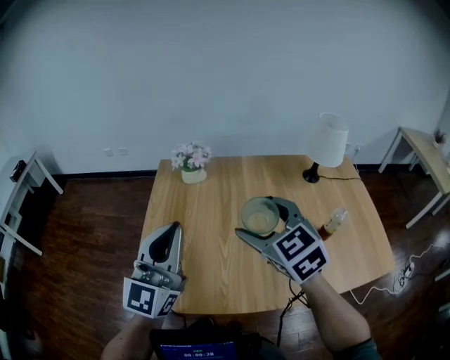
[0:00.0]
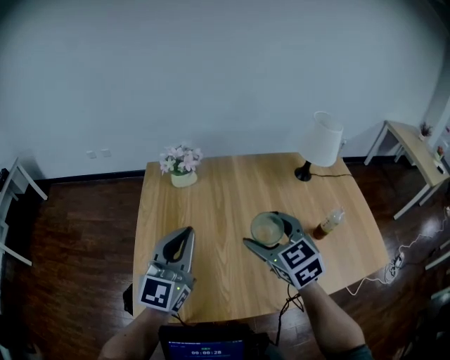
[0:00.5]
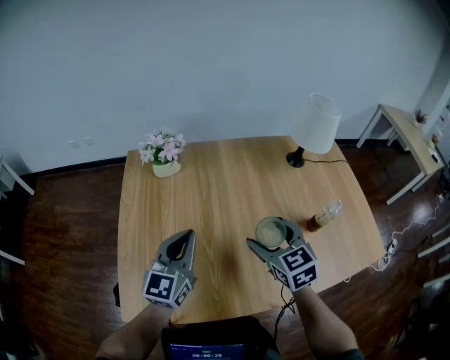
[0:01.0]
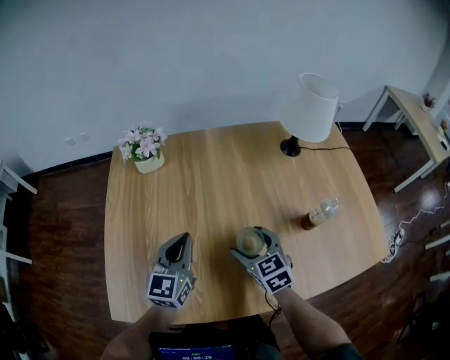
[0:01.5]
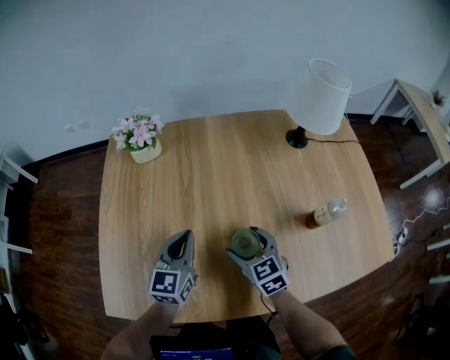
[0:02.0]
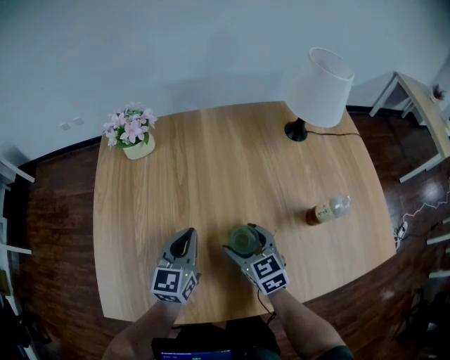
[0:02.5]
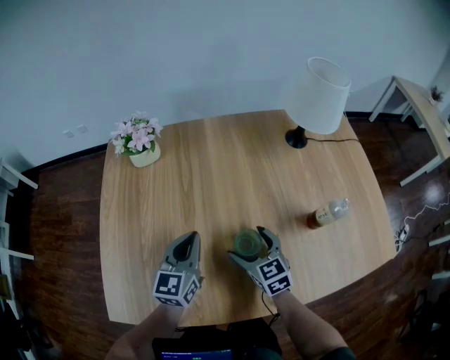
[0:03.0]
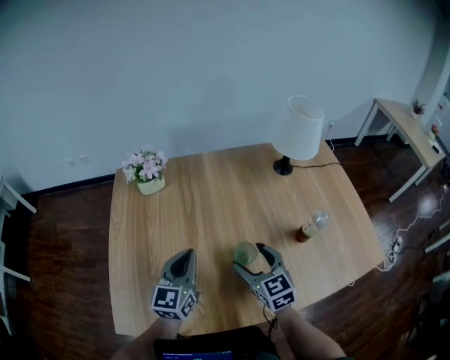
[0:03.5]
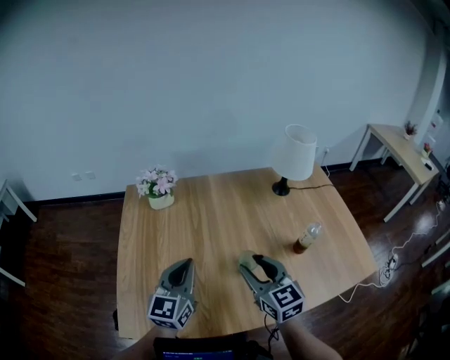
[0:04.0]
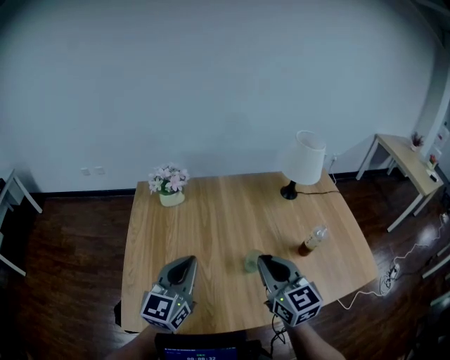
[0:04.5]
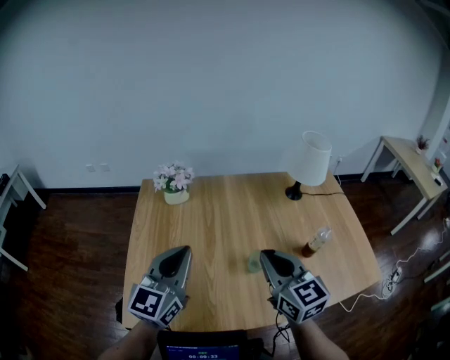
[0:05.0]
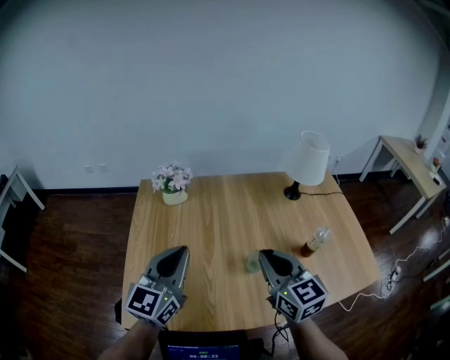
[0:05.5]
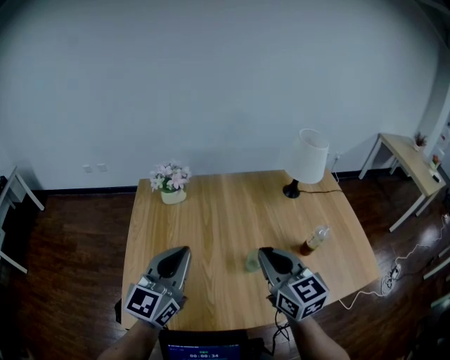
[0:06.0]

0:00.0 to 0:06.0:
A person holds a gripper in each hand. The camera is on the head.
0:00.0 to 0:02.0: The left gripper travels downward, forward and to the right by about 30 cm, and angles its fingers downward, by approximately 30 degrees, while the right gripper is displaced downward by about 30 cm, and rotates about 20 degrees.
0:02.0 to 0:04.0: The left gripper travels upward and backward by some 15 cm. Meanwhile the right gripper travels upward by approximately 20 cm, turns by roughly 20 degrees, and closes its fingers.
0:04.0 to 0:06.0: The two grippers go roughly 10 cm upward. The right gripper closes.

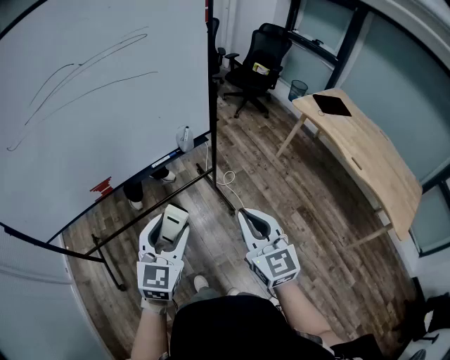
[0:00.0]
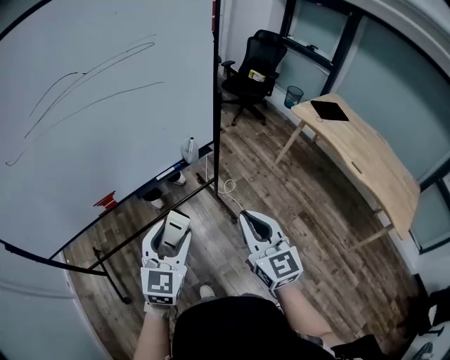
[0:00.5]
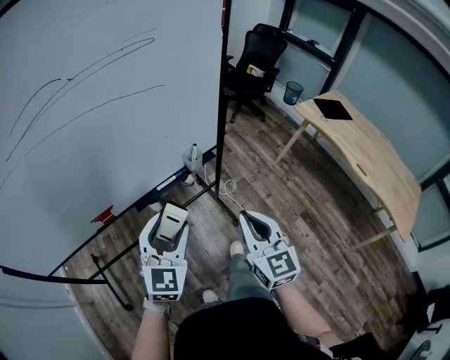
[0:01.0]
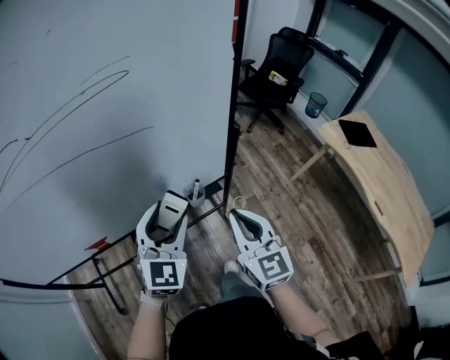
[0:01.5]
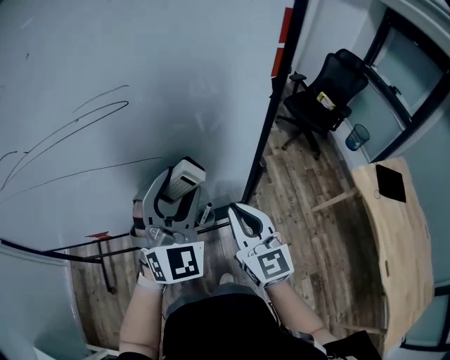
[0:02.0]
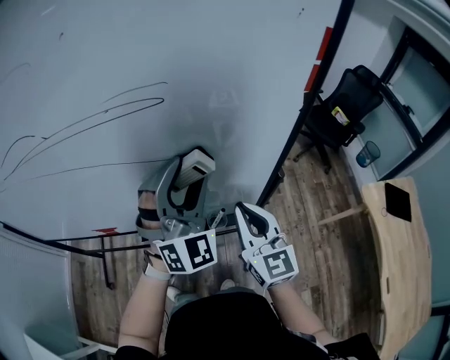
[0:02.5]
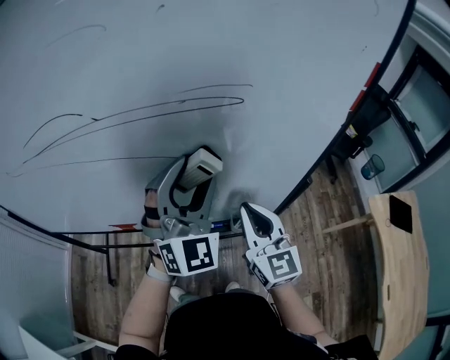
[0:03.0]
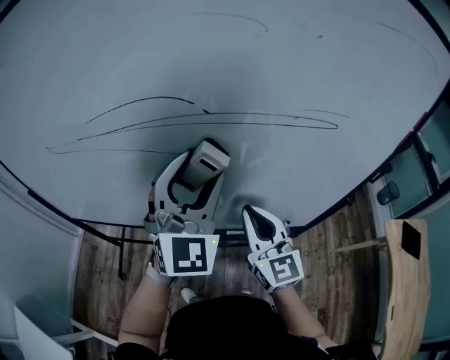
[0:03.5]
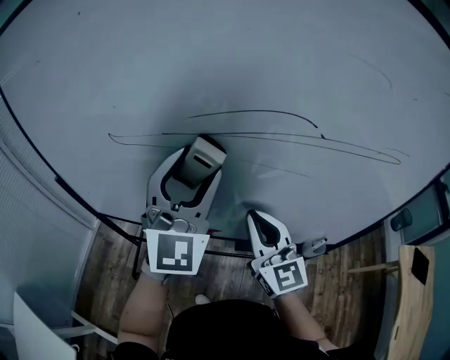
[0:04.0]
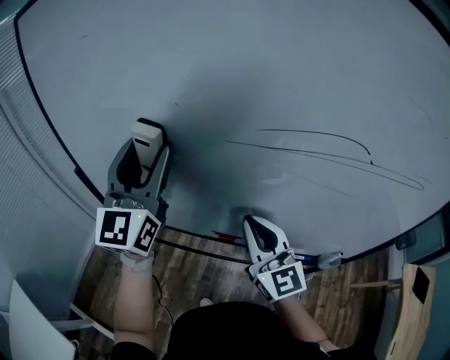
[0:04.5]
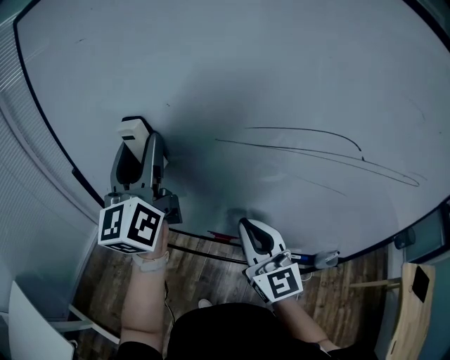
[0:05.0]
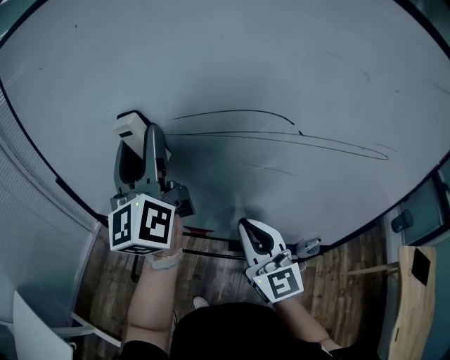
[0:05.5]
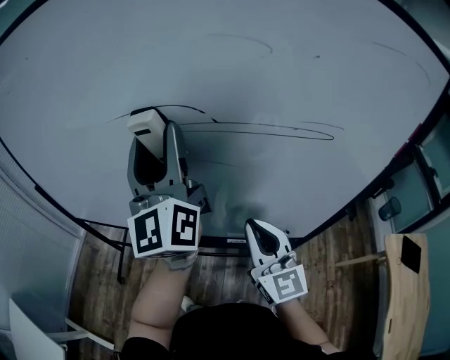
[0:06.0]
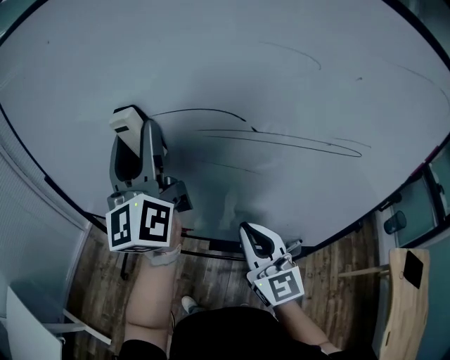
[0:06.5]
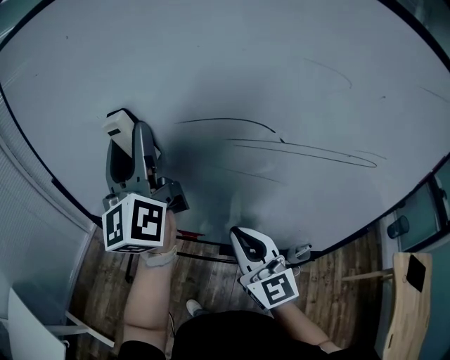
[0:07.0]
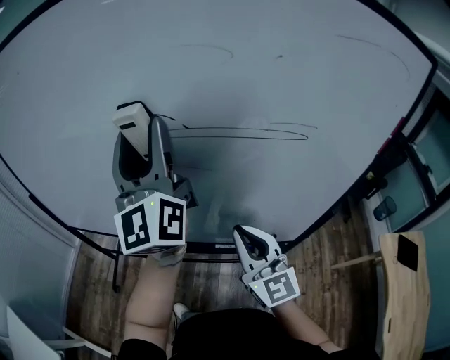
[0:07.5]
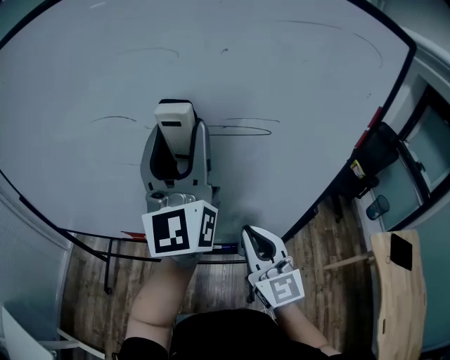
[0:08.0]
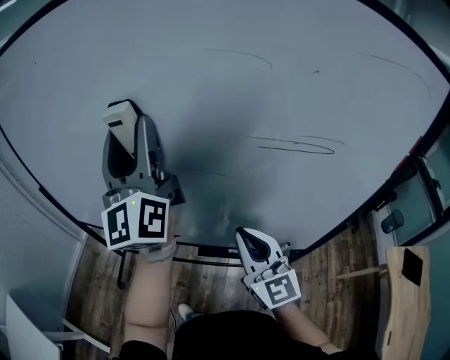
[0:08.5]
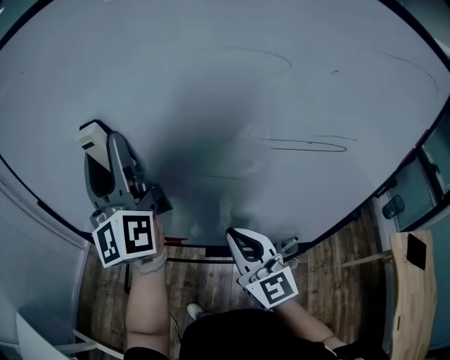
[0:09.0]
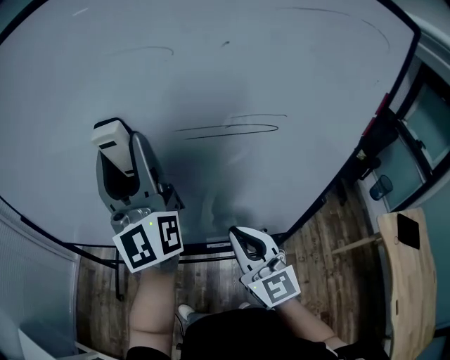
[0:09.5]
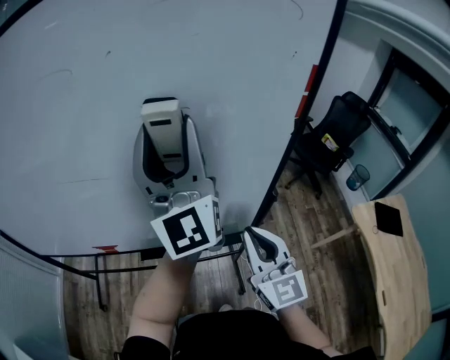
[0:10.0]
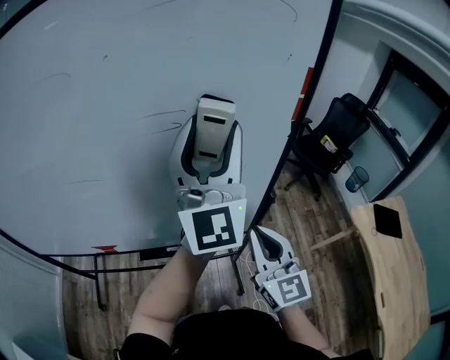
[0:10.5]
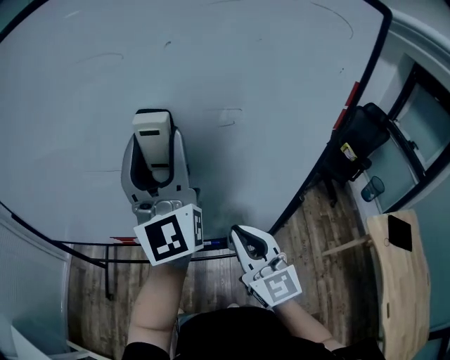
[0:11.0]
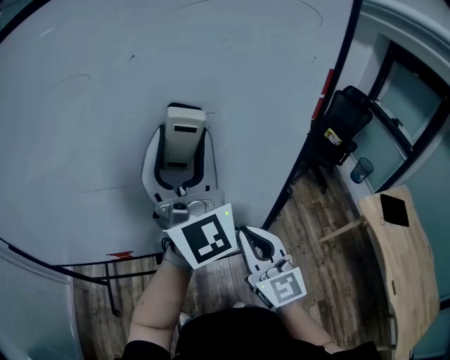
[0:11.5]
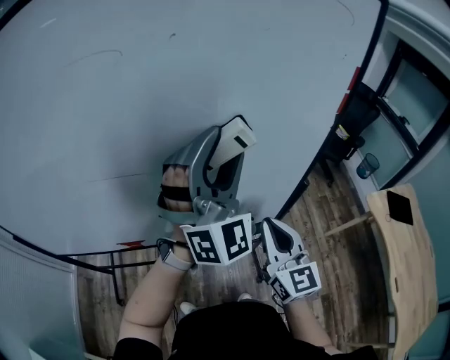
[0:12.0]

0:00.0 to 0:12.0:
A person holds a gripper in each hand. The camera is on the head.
0:00.0 to 0:02.0: The pair of grippers is taken approximately 40 cm. The left gripper changes its angle by some 40 degrees. The right gripper rotates roughly 20 degrees.
0:02.0 to 0:04.0: The two grippers travel together, to the left, roughly 40 cm. The left gripper changes its angle by roughly 20 degrees. Meanwhile the right gripper rotates some 20 degrees.
0:04.0 to 0:06.0: The right gripper heads to the right and backward, covering roughly 15 cm. The left gripper goes some 5 cm upward, goes to the left and returns, roughly 20 cm each way, and swivels roughly 60 degrees.
0:06.0 to 0:08.0: Both grippers travel together to the right and backward, some 15 cm.
0:08.0 to 0:10.0: The left gripper travels to the left and back again, approximately 25 cm each way, while the right gripper moves to the right and backward, approximately 10 cm.
0:10.0 to 0:12.0: The left gripper swings left and right, approximately 20 cm each way, with 2 reversals, and changes its angle by approximately 60 degrees.

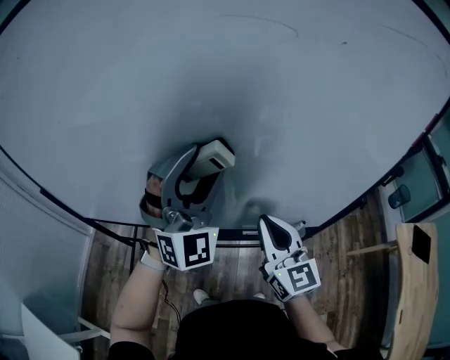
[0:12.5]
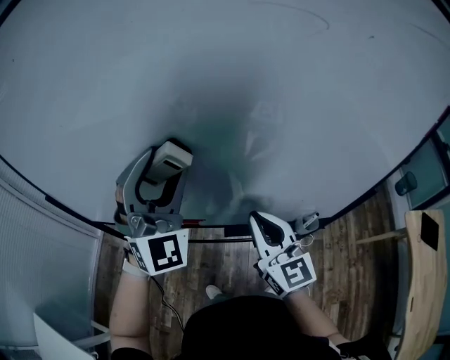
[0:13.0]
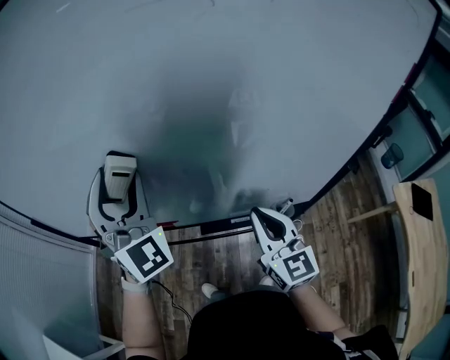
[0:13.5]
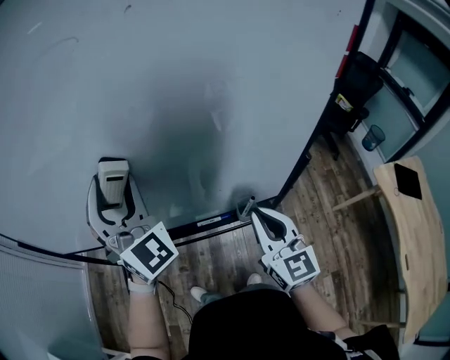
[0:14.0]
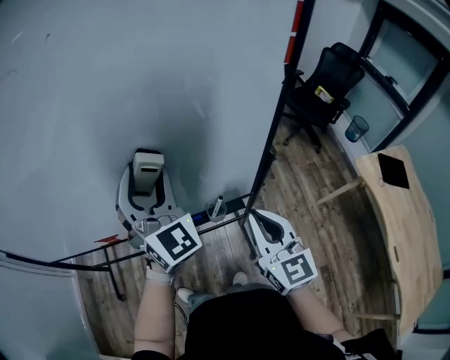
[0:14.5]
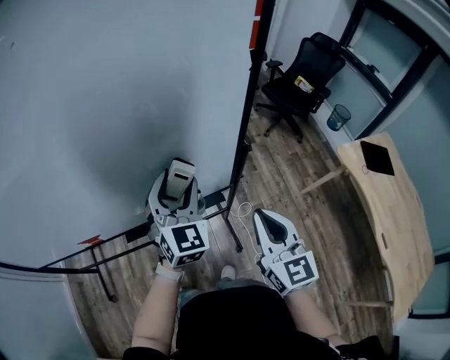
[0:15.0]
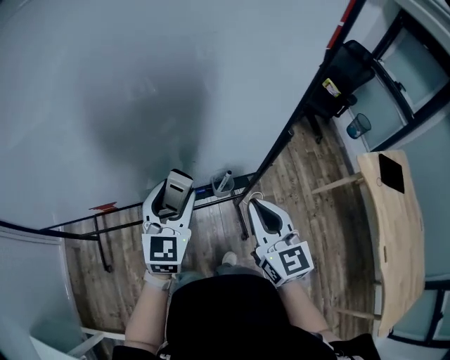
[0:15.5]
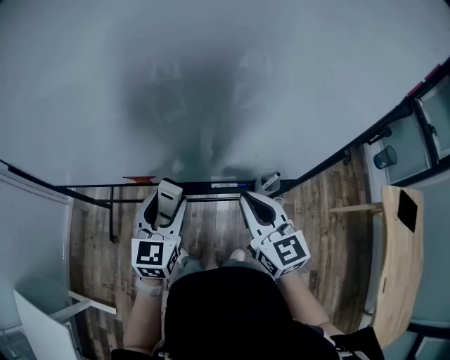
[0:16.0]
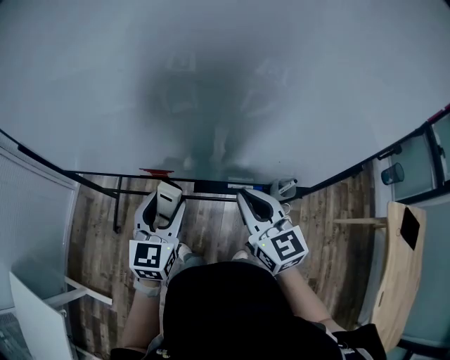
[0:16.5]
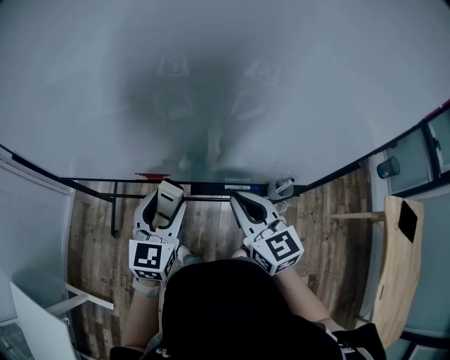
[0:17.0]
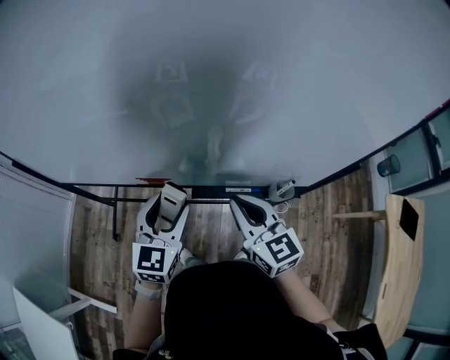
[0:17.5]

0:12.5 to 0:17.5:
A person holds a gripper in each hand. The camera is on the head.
0:12.5 to 0:15.0: The right gripper goes some 35 cm to the right and backward, and changes its angle by about 30 degrees. Meanwhile the left gripper heads to the right and downward, covering some 35 cm, and rotates roughly 40 degrees.
0:15.0 to 0:17.5: The grippers both shift to the left by some 35 cm. The left gripper rotates roughly 30 degrees. Meanwhile the right gripper rotates some 40 degrees.

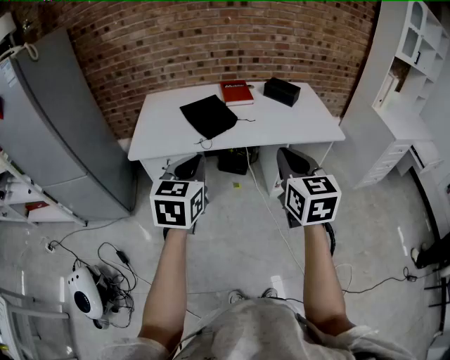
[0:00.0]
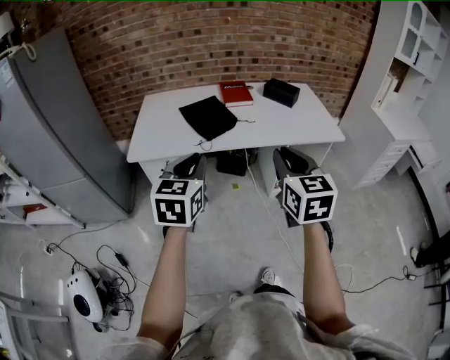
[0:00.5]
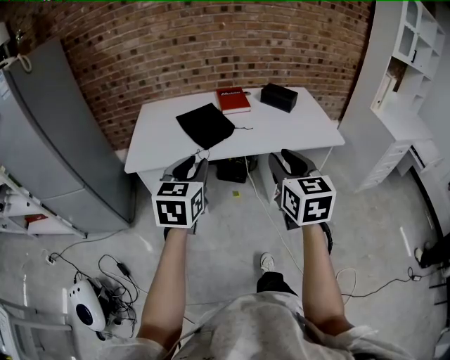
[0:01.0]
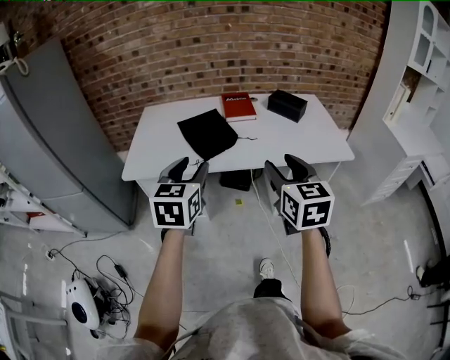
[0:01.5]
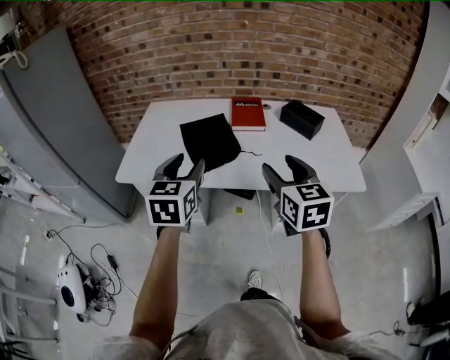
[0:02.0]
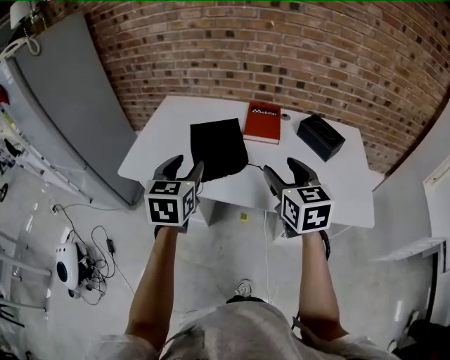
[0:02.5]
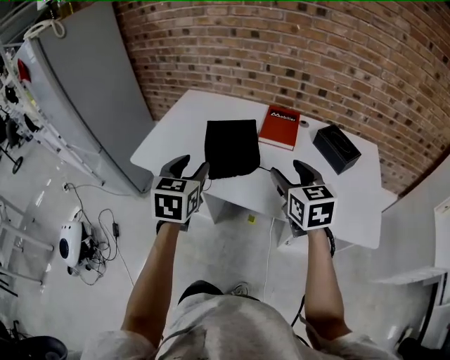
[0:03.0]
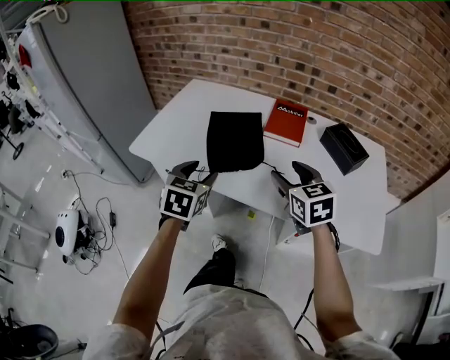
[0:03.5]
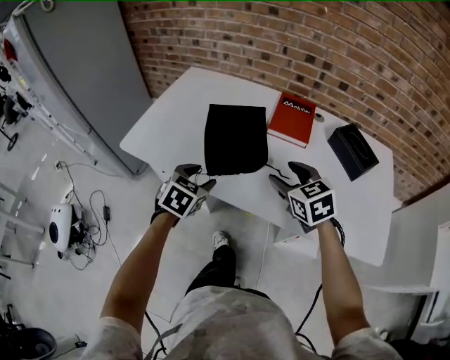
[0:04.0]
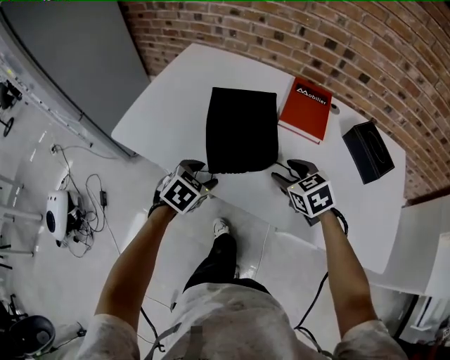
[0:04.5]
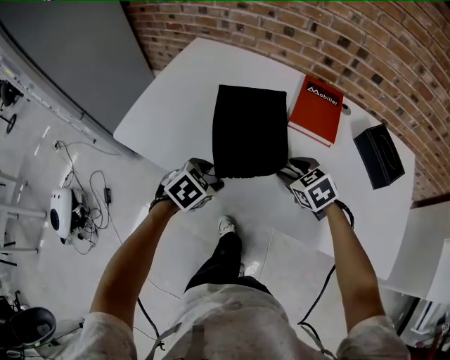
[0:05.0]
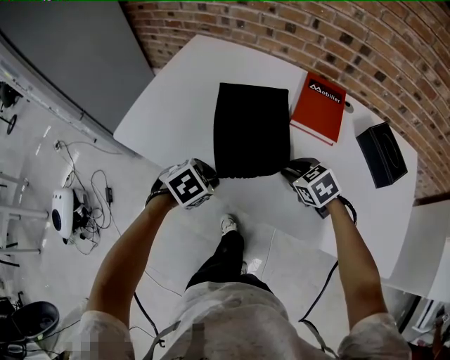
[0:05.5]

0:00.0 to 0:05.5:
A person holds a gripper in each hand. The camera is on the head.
0:00.0 to 0:02.0: Both grippers move forward, approximately 25 cm. The right gripper opens, while the left gripper opens its fingers.
0:02.0 to 0:03.5: The left gripper travels downward and forward by some 15 cm. The right gripper heads forward and downward, covering approximately 15 cm, and changes its angle by roughly 30 degrees.
0:03.5 to 0:05.5: The grippers both shift downward and forward by about 20 cm. The left gripper tips its fingers downward by about 30 degrees, and closes its fingers; the right gripper turns by some 40 degrees, and closes up.
